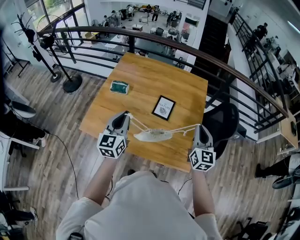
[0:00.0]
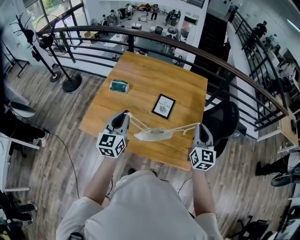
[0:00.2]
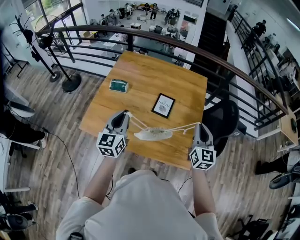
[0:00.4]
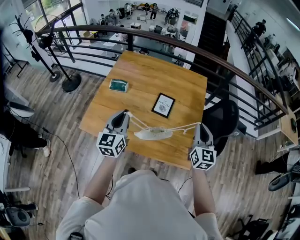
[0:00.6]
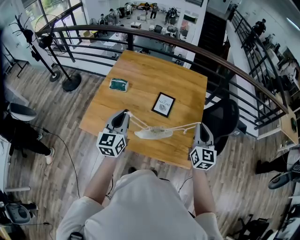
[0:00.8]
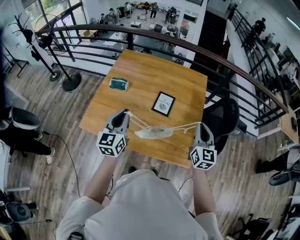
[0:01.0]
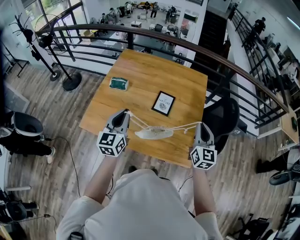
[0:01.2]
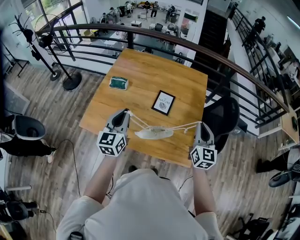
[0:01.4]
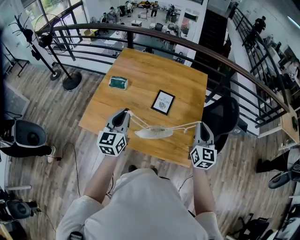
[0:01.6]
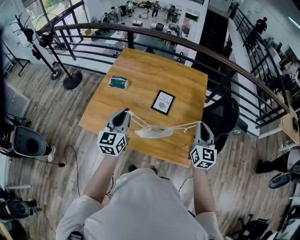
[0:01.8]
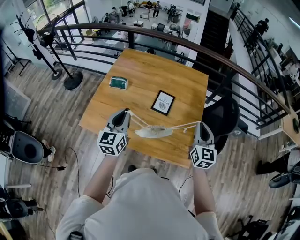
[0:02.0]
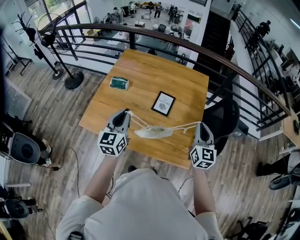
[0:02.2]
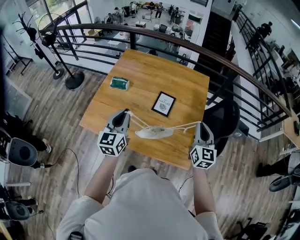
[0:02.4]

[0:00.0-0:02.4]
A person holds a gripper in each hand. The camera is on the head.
0:00.0 to 0:01.2: Neither gripper changes place.
0:01.2 to 0:02.4: There are only small adjustments of the grippers.

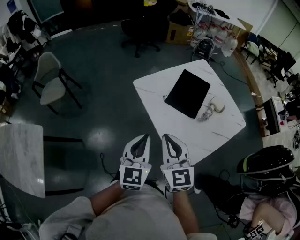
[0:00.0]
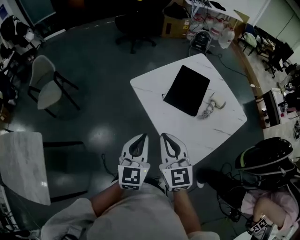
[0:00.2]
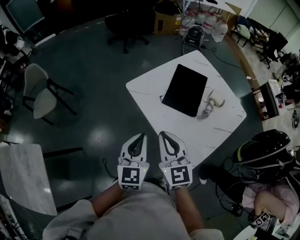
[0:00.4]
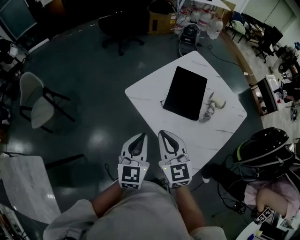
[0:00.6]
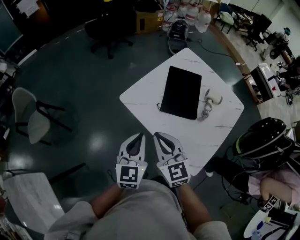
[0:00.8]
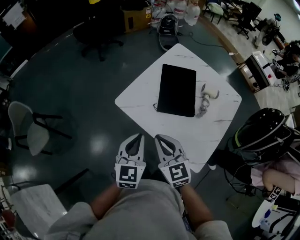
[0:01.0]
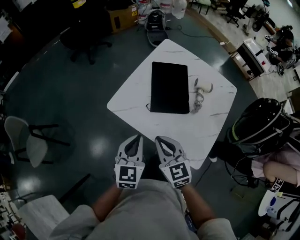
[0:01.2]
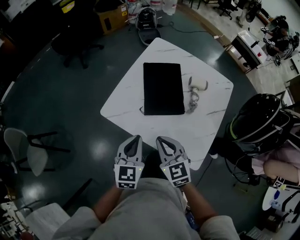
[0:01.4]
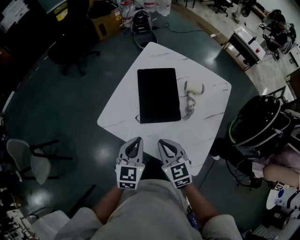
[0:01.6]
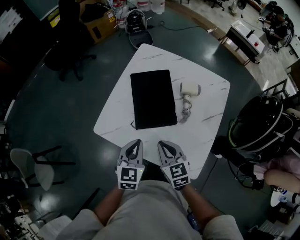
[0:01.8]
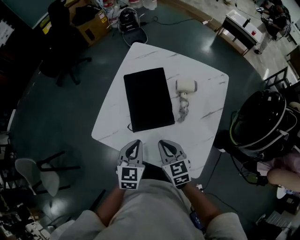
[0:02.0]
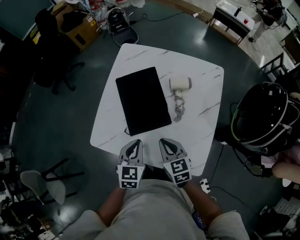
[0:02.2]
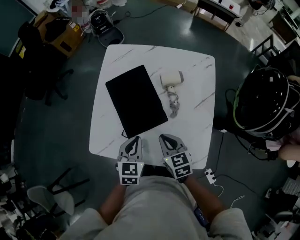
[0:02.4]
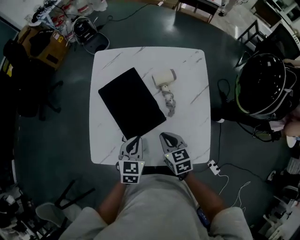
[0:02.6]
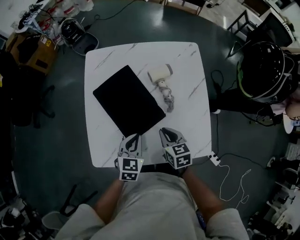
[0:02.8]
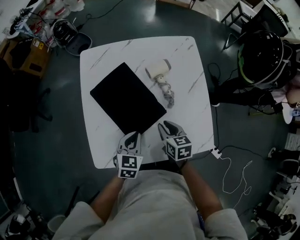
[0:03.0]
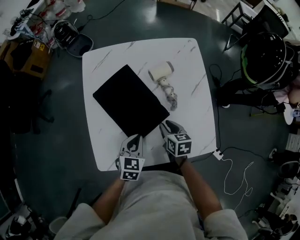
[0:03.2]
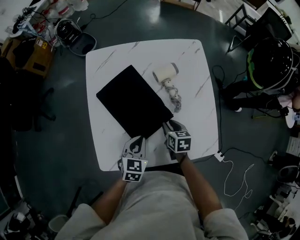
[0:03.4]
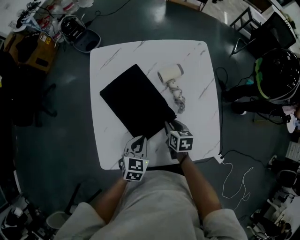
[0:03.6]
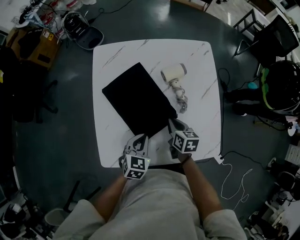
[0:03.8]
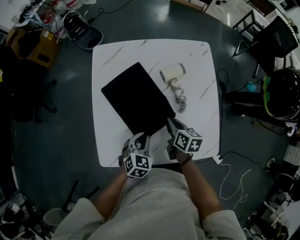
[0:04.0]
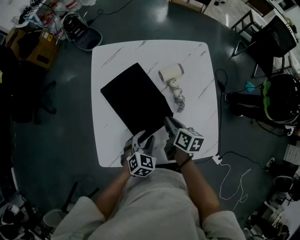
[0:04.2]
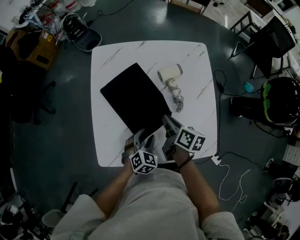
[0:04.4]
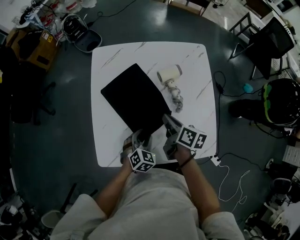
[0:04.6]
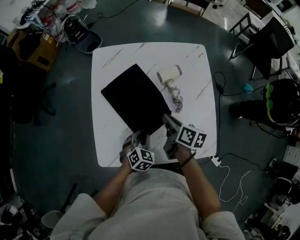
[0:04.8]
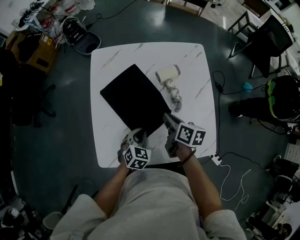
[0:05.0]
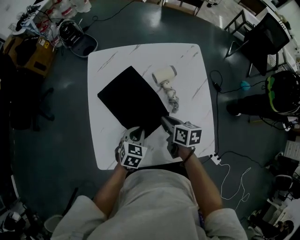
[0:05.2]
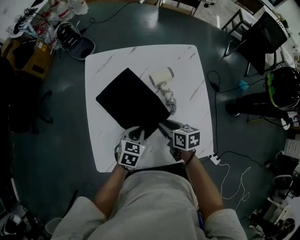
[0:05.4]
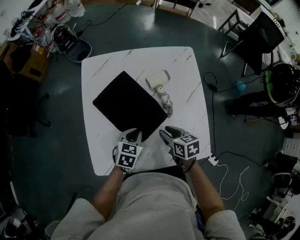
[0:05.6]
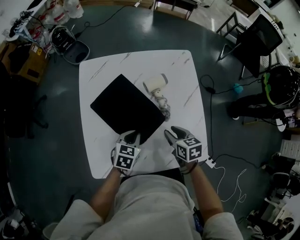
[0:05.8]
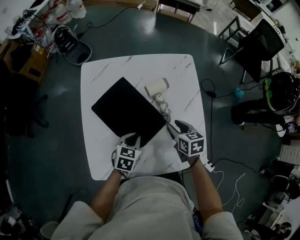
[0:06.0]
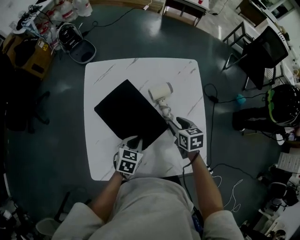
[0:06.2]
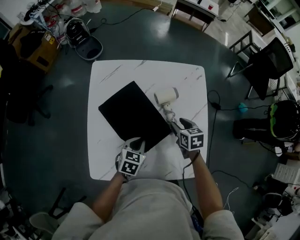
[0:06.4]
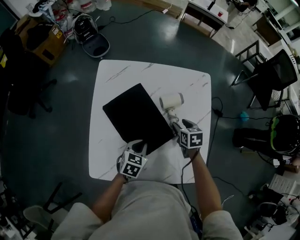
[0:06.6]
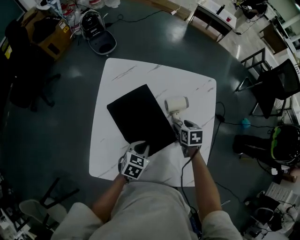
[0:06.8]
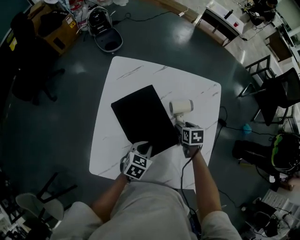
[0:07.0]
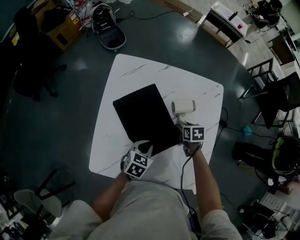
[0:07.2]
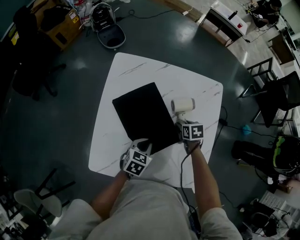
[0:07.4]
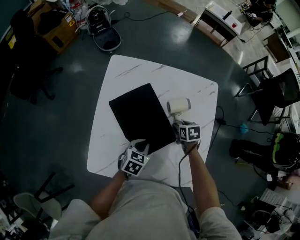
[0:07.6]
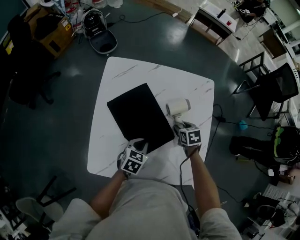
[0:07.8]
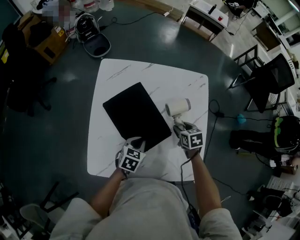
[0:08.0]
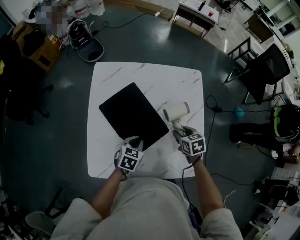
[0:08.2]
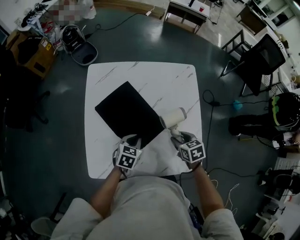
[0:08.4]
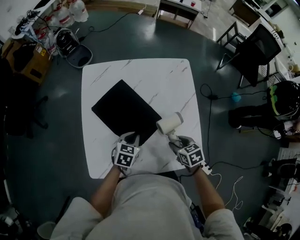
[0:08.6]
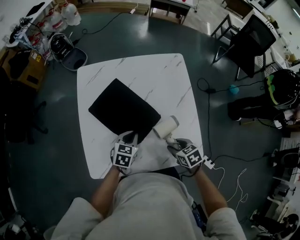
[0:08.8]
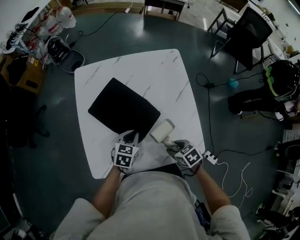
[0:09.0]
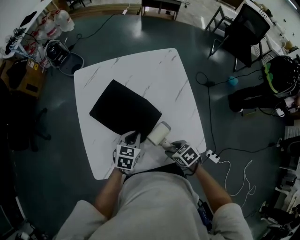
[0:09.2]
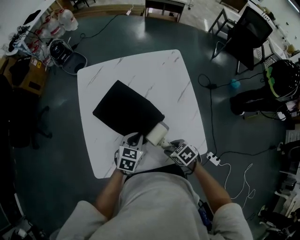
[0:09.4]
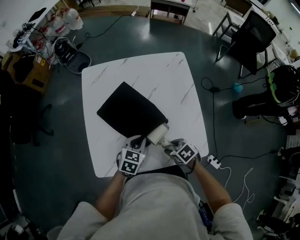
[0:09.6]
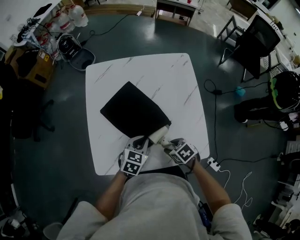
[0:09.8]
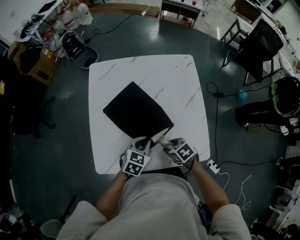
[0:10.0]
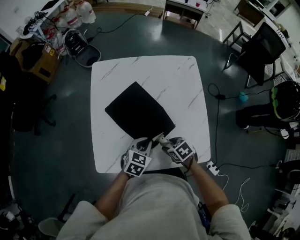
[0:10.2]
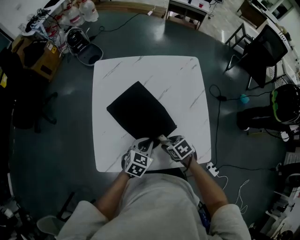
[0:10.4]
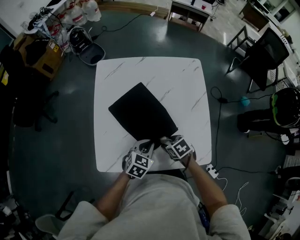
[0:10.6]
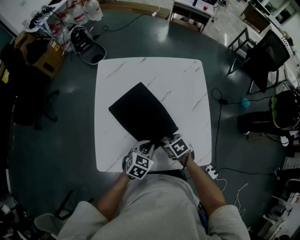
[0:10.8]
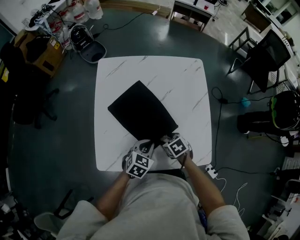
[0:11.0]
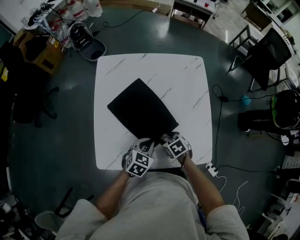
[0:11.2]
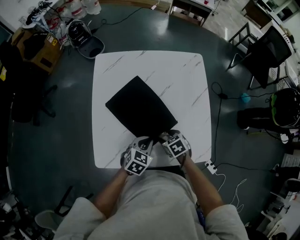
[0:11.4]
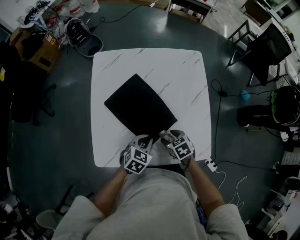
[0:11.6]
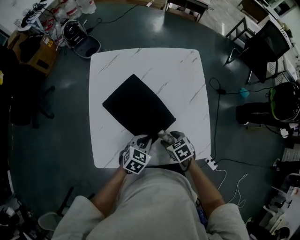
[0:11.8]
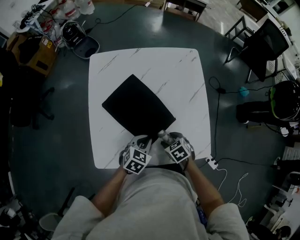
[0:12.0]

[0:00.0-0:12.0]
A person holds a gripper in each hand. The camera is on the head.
0:00.0 to 0:01.6: The left gripper changes place by roughly 25 cm, and changes its angle by roughly 40 degrees. Meanwhile the right gripper moves approximately 25 cm, and turns by approximately 30 degrees.
0:01.6 to 0:03.0: Both grippers move downward, about 15 cm. The left gripper swivels some 40 degrees. Meanwhile the right gripper twists approximately 40 degrees clockwise, seen from behind.
0:03.0 to 0:04.4: The left gripper swivels roughly 20 degrees, and opens up; the right gripper heads forward, covering roughly 5 cm, and turns by approximately 30 degrees.
0:04.4 to 0:06.0: The left gripper travels forward by approximately 5 cm, changes its angle by approximately 30 degrees, and closes its fingers; the right gripper is displaced to the right by some 10 cm, swivels approximately 40 degrees, and opens its fingers.
0:06.0 to 0:07.6: The right gripper is displaced forward and downward by approximately 15 cm, and rotates about 20 degrees.
0:07.6 to 0:09.0: The right gripper is displaced backward by about 25 cm.
0:09.0 to 0:10.4: The right gripper shifts about 10 cm to the left and forward. The left gripper moves backward, roughly 5 cm.
0:10.4 to 0:12.0: The grippers move only a little.

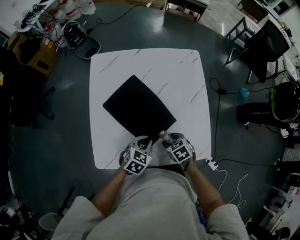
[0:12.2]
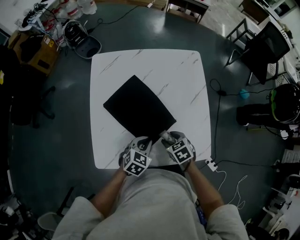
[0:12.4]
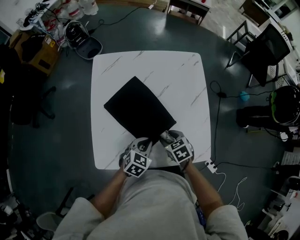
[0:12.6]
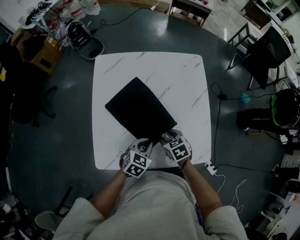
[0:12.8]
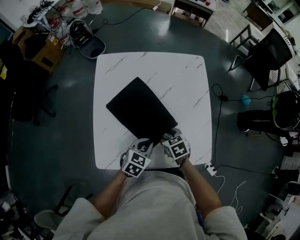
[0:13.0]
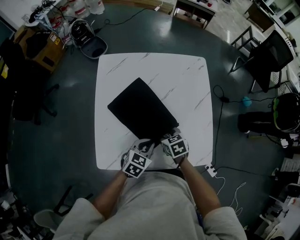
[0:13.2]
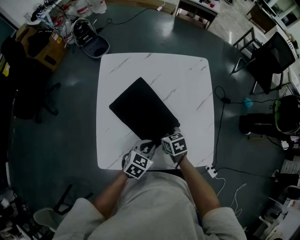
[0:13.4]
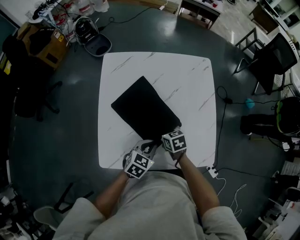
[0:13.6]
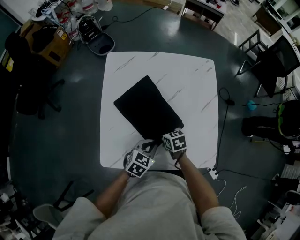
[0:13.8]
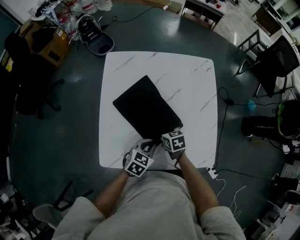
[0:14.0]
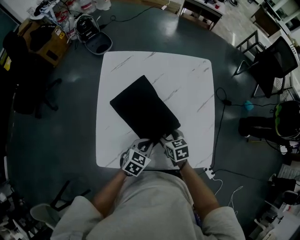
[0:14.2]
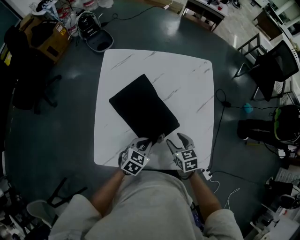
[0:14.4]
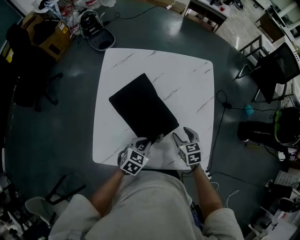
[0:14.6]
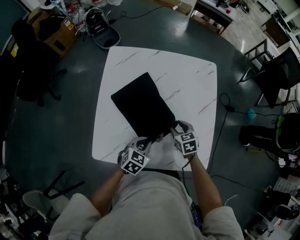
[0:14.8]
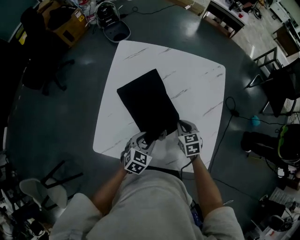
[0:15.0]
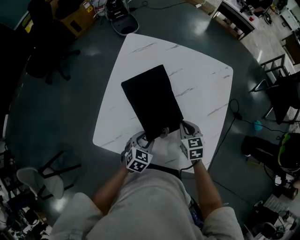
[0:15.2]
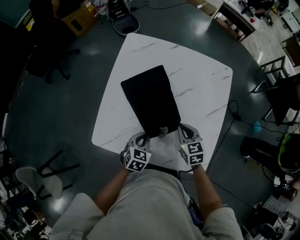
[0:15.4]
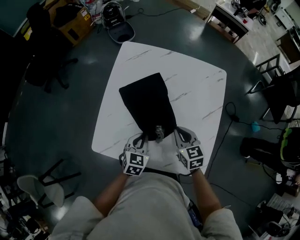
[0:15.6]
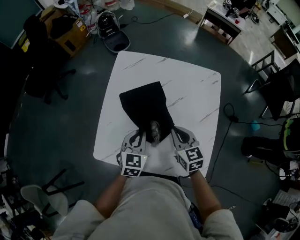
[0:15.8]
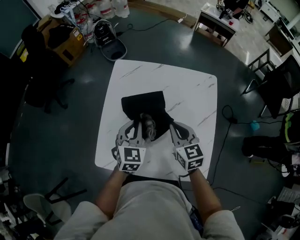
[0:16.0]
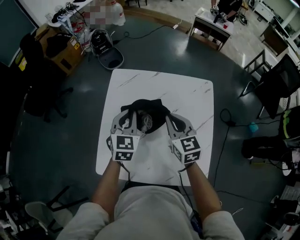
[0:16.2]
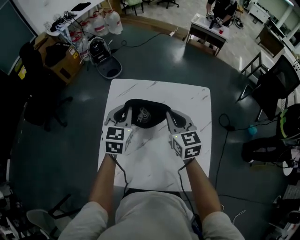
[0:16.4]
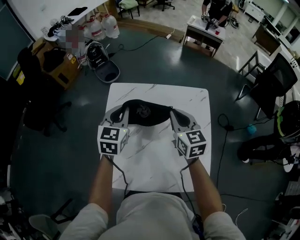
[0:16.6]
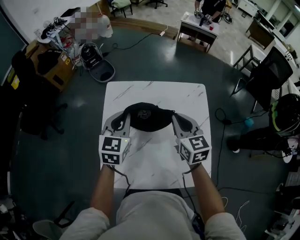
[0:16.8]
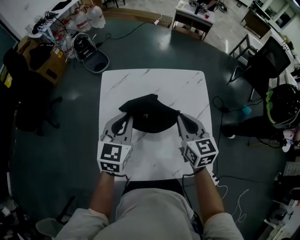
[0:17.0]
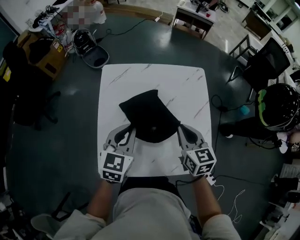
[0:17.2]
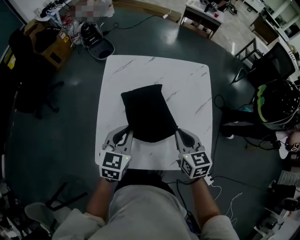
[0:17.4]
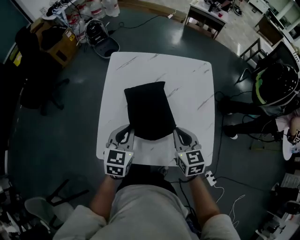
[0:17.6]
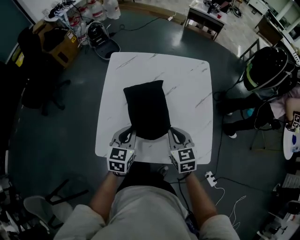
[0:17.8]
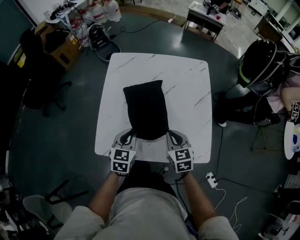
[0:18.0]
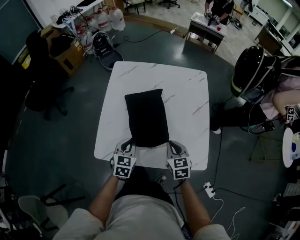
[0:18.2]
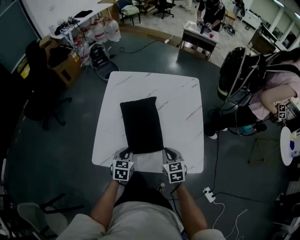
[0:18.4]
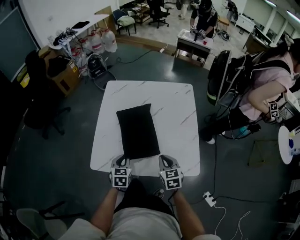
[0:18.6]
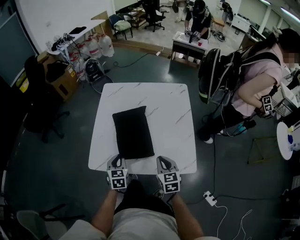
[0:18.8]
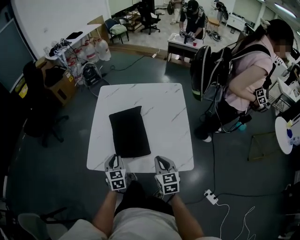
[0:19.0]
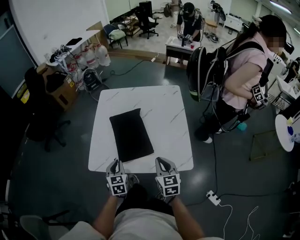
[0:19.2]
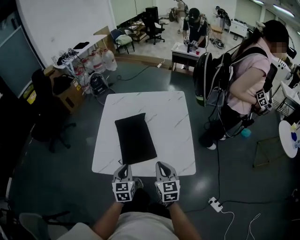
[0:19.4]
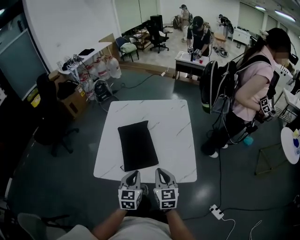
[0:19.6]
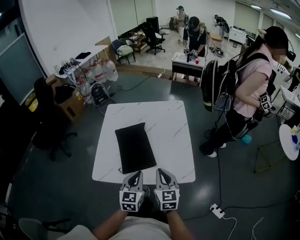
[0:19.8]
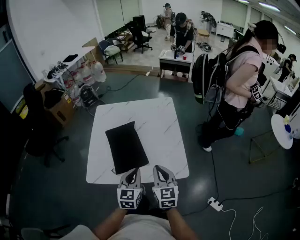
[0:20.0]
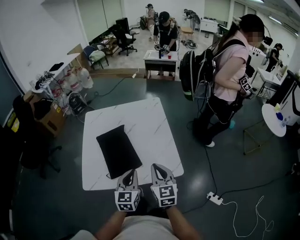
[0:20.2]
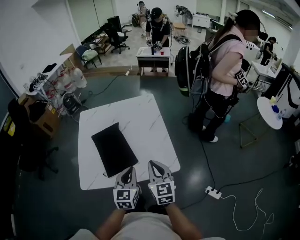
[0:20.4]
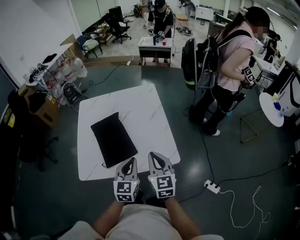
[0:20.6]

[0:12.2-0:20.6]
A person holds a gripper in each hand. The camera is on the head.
0:12.2 to 0:13.6: The right gripper shifts roughly 10 cm forward and to the left.
0:13.6 to 0:15.0: The right gripper shifts about 10 cm to the right, and closes; the left gripper opens its fingers.
0:15.0 to 0:16.4: The right gripper goes approximately 25 cm upward and forward, and turns by approximately 30 degrees, while the left gripper goes roughly 30 cm forward and upward, swivels some 30 degrees, and closes up.
0:16.4 to 0:17.8: The grippers both shift backward and downward by roughly 25 cm.
0:17.8 to 0:19.2: Both grippers move backward, about 15 cm. The left gripper swivels some 20 degrees.
0:19.2 to 0:20.6: The right gripper goes roughly 5 cm upward. Meanwhile the left gripper goes some 20 cm to the right and upward, and swivels approximately 30 degrees.
